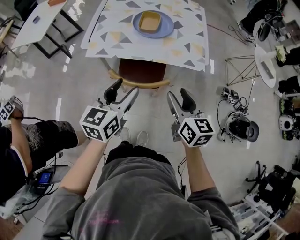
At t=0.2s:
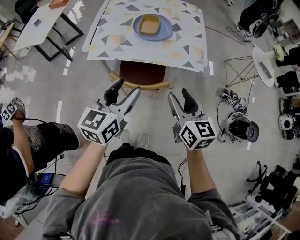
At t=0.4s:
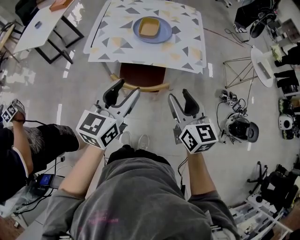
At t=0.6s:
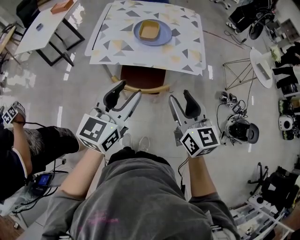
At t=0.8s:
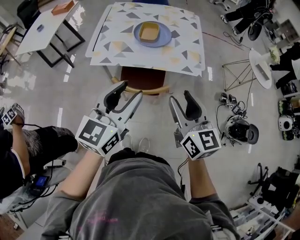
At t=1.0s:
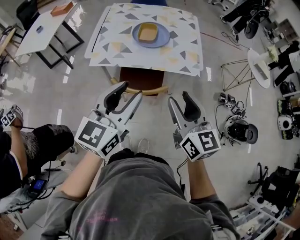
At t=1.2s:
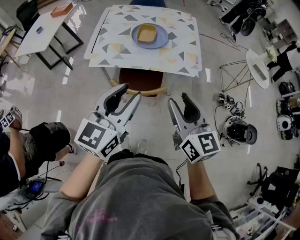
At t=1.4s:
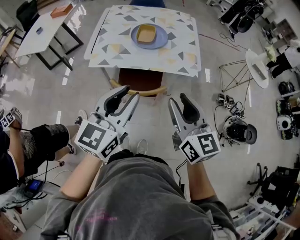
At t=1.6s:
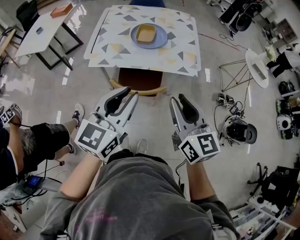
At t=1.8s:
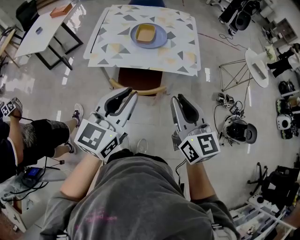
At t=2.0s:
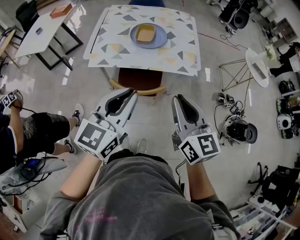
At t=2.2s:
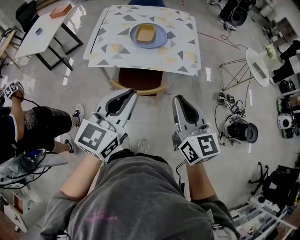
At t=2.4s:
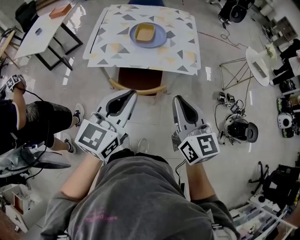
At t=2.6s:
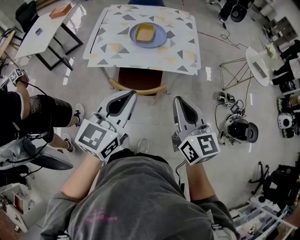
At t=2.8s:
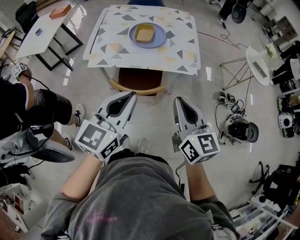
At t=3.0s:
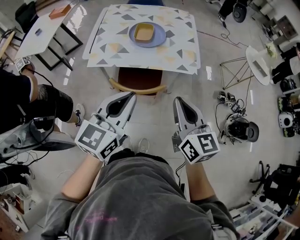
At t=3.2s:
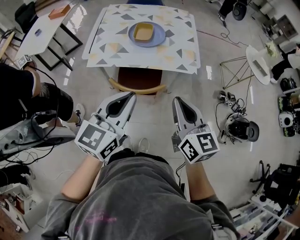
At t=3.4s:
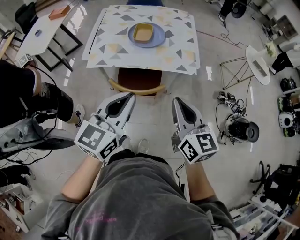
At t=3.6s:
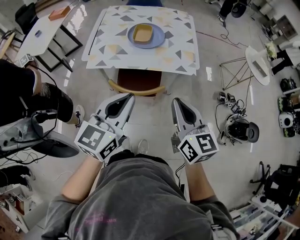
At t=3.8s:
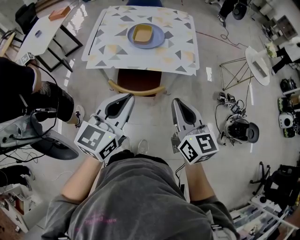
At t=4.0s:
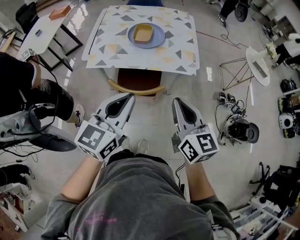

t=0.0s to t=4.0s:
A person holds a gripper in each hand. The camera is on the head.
t=0.0s to t=1.4s: Both grippers move upward and backward, roughly 15 cm. The left gripper closes up.
t=1.4s to t=2.6s: The right gripper closes; the left gripper closes up.
t=2.6s to t=4.0s: The grippers move only a little.

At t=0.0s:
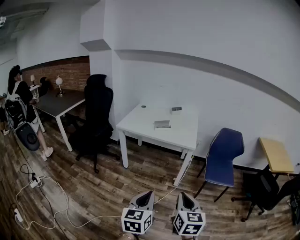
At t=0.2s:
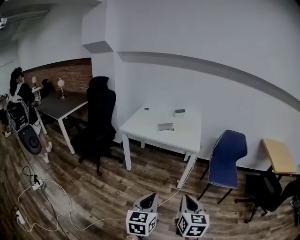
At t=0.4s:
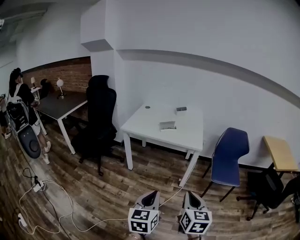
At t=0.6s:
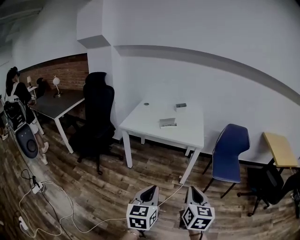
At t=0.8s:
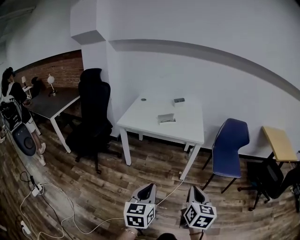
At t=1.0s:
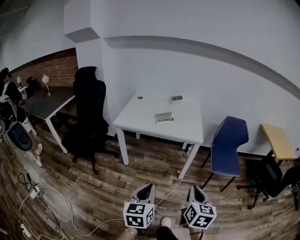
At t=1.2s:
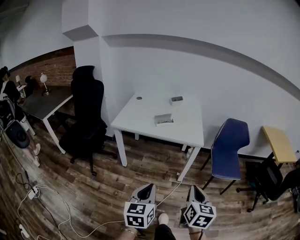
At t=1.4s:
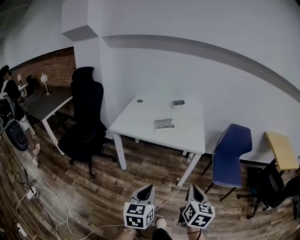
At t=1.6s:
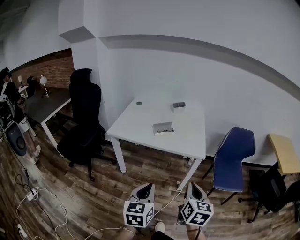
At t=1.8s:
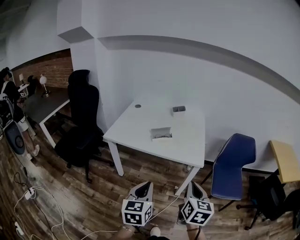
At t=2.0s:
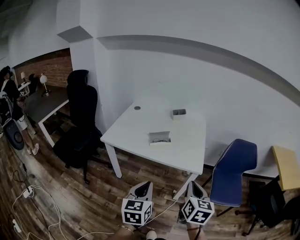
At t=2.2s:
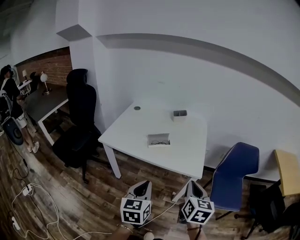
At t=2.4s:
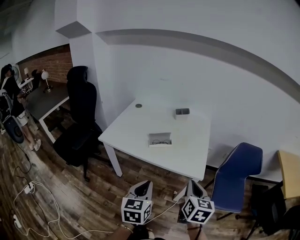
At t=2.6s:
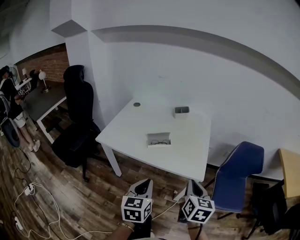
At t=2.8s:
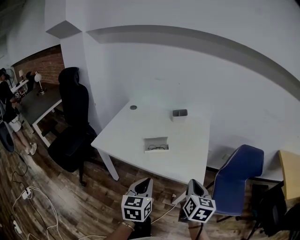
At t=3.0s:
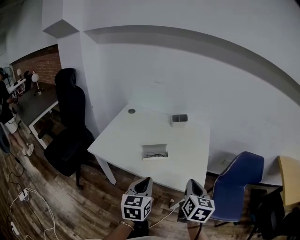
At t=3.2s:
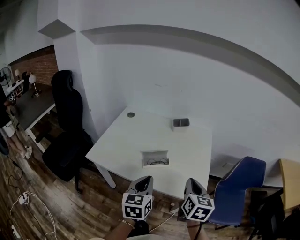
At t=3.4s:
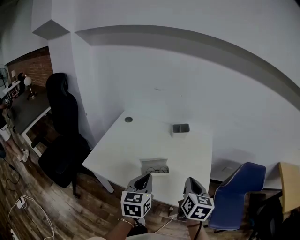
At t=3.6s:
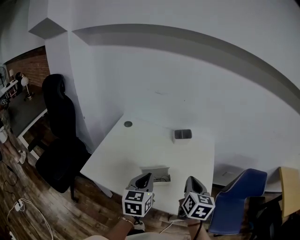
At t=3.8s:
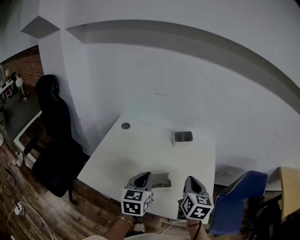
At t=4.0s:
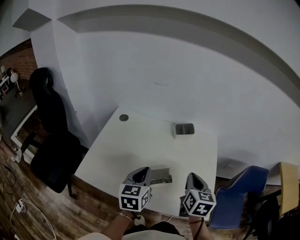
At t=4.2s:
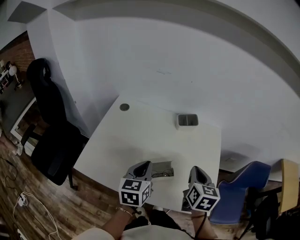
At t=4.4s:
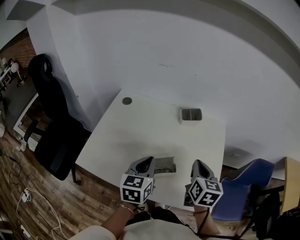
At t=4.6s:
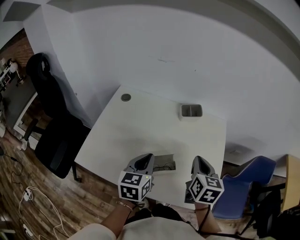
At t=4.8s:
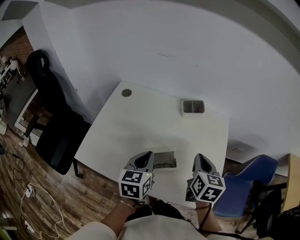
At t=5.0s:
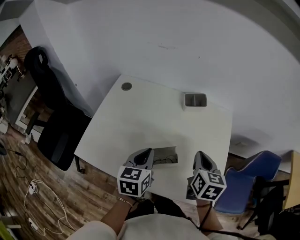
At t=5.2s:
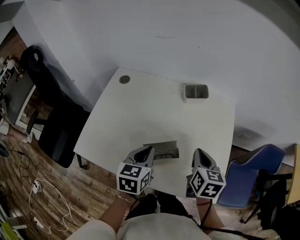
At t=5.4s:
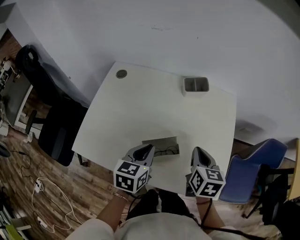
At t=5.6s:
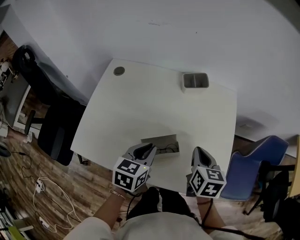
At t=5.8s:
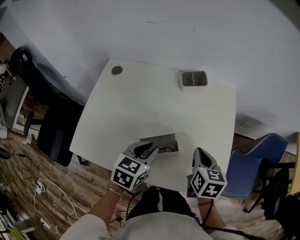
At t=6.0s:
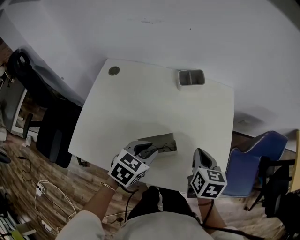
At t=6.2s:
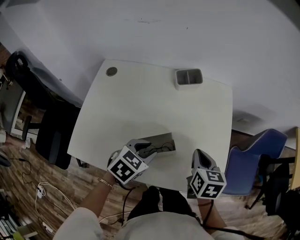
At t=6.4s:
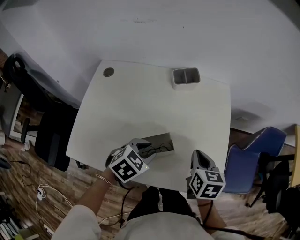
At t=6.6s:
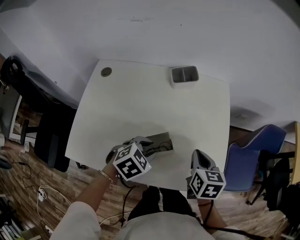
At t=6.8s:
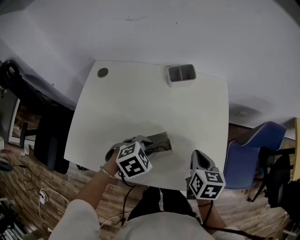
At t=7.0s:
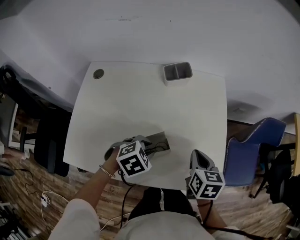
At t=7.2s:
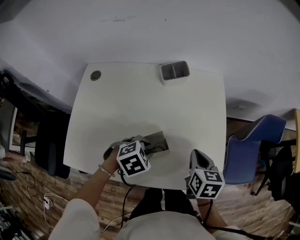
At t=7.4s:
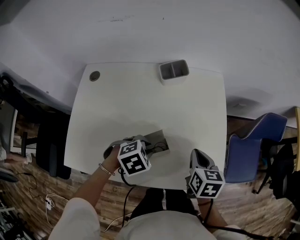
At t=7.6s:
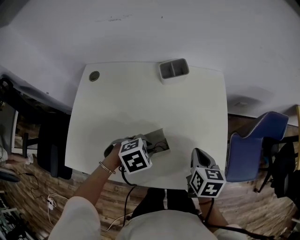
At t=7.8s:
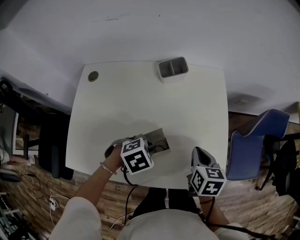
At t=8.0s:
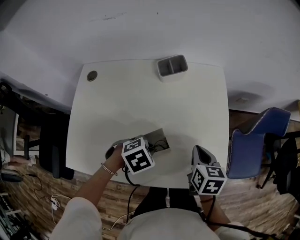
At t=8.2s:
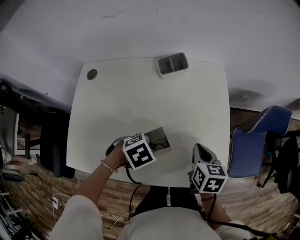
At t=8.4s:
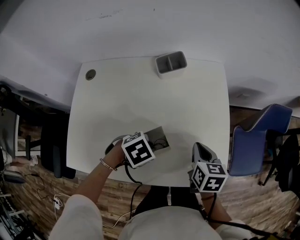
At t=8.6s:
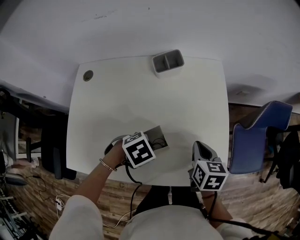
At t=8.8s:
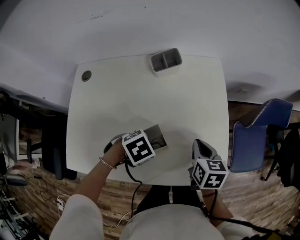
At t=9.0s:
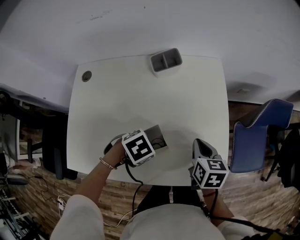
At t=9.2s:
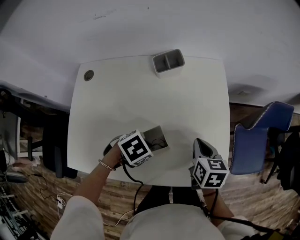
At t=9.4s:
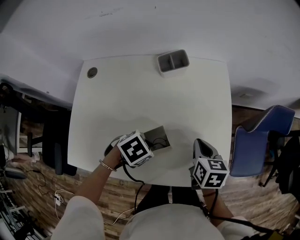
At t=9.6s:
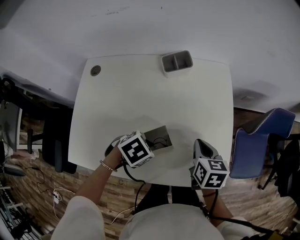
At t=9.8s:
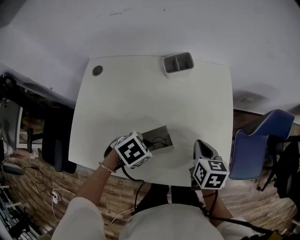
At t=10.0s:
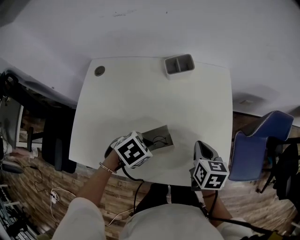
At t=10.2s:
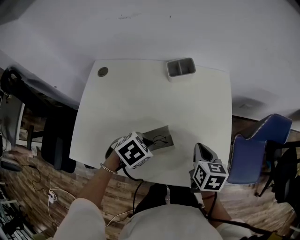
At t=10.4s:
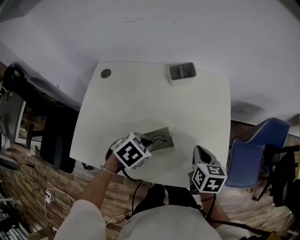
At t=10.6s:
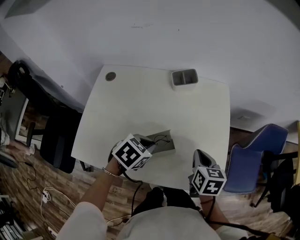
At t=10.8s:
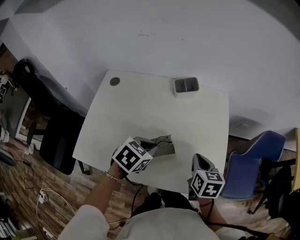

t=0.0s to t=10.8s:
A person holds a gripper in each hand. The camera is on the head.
t=0.0s to t=1.6s: Both grippers travel together forward, about 20 cm.
t=1.6s to t=3.0s: The grippers both shift forward by roughly 30 cm.
t=3.0s to t=4.6s: The two grippers go roughly 20 cm forward.
t=4.6s to t=6.2s: Both grippers move downward, some 10 cm. The left gripper swivels about 50 degrees, and opens.
t=6.2s to t=7.8s: The left gripper travels downward by roughly 5 cm, and rotates approximately 40 degrees.
t=7.8s to t=9.2s: The grippers make only small movements.
t=9.2s to t=10.8s: The left gripper heads upward, covering some 10 cm, and rotates some 40 degrees.

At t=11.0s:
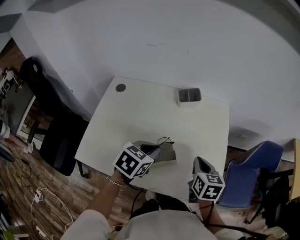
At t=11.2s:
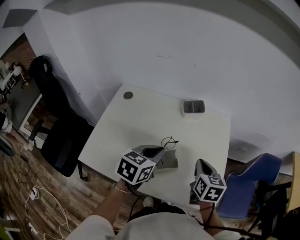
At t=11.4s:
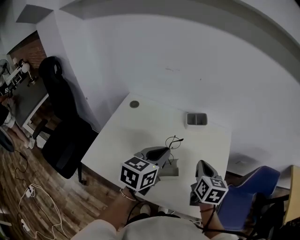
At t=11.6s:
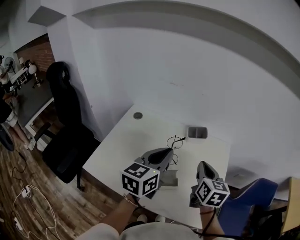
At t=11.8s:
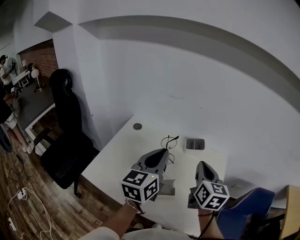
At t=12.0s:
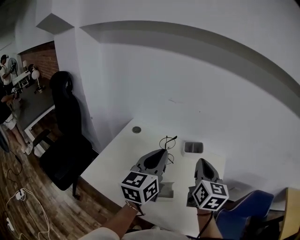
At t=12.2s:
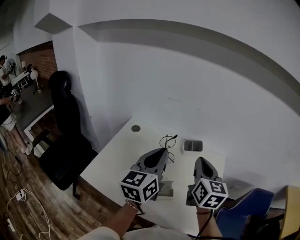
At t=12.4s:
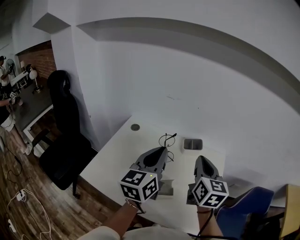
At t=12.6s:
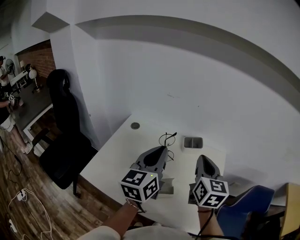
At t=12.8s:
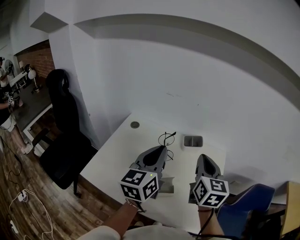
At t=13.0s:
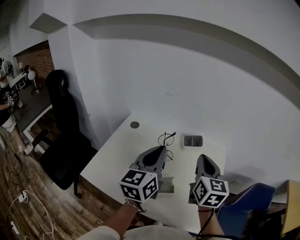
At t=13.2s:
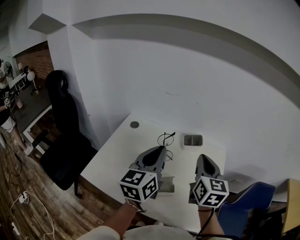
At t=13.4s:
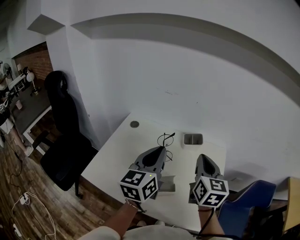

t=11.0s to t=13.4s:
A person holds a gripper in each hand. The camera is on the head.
t=11.0s to t=12.2s: The right gripper goes roughly 20 cm upward and forward, and rotates approximately 30 degrees. The left gripper heads upward, covering some 20 cm, and angles its fingers upward, by roughly 50 degrees.
t=12.2s to t=13.4s: The grippers make only small movements.

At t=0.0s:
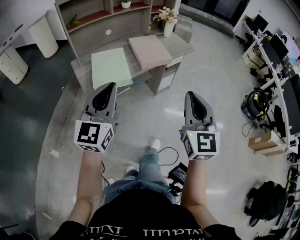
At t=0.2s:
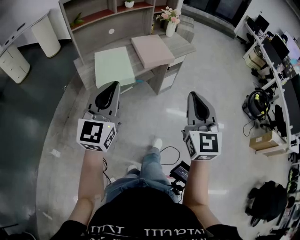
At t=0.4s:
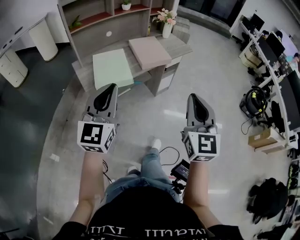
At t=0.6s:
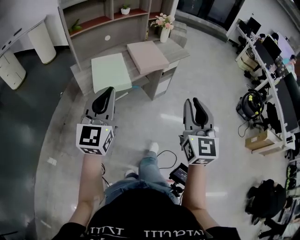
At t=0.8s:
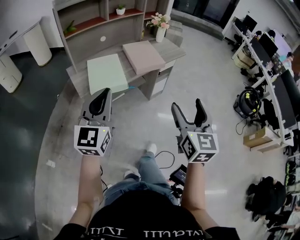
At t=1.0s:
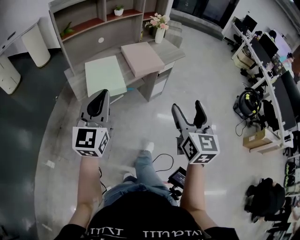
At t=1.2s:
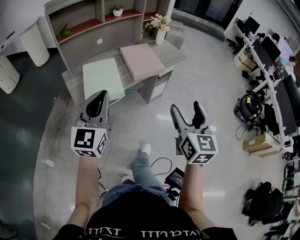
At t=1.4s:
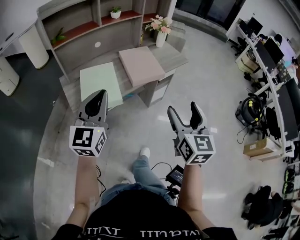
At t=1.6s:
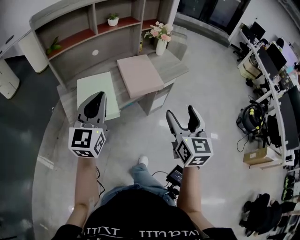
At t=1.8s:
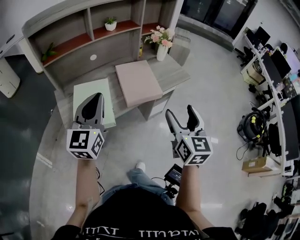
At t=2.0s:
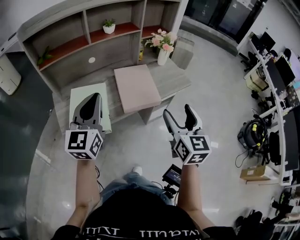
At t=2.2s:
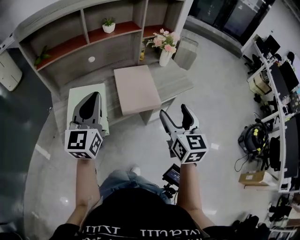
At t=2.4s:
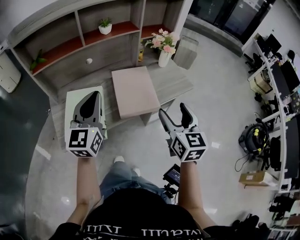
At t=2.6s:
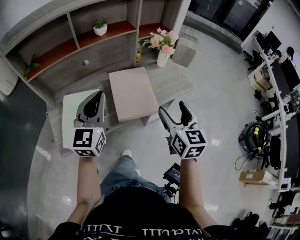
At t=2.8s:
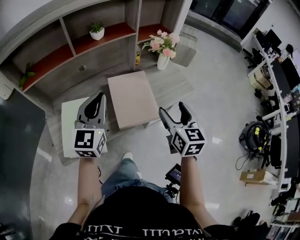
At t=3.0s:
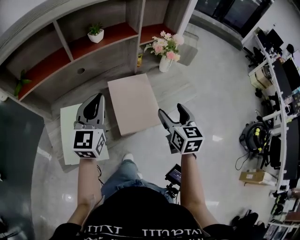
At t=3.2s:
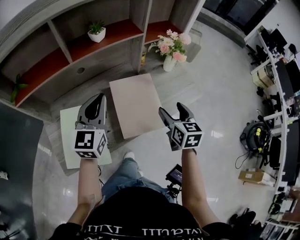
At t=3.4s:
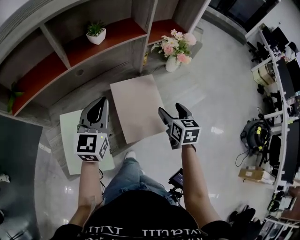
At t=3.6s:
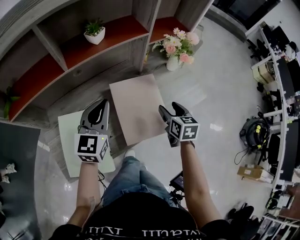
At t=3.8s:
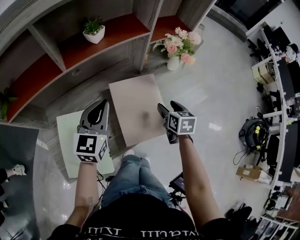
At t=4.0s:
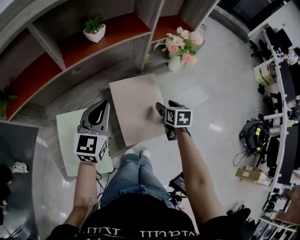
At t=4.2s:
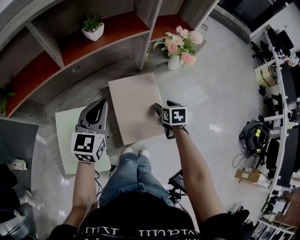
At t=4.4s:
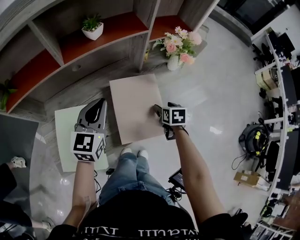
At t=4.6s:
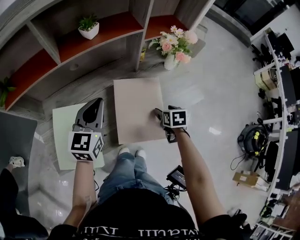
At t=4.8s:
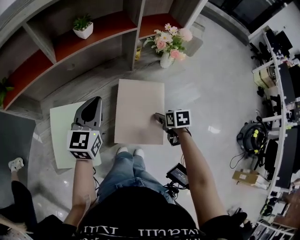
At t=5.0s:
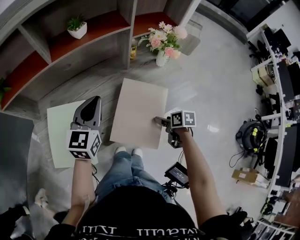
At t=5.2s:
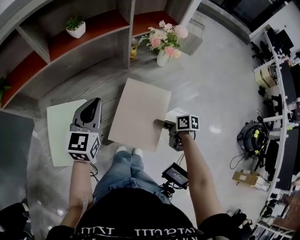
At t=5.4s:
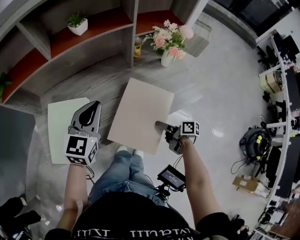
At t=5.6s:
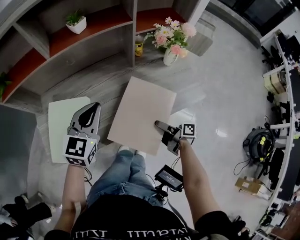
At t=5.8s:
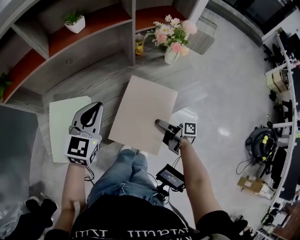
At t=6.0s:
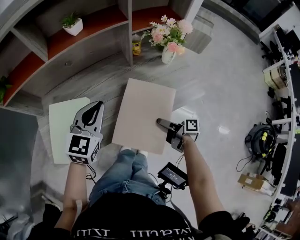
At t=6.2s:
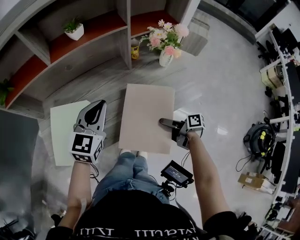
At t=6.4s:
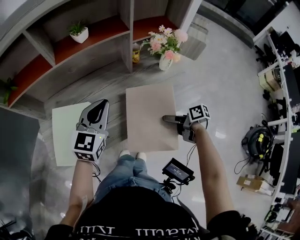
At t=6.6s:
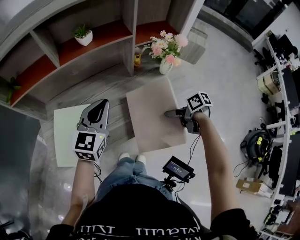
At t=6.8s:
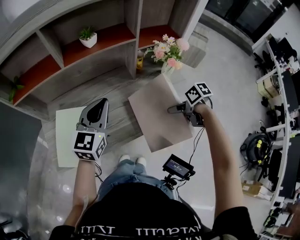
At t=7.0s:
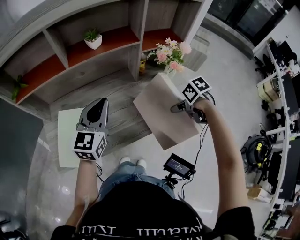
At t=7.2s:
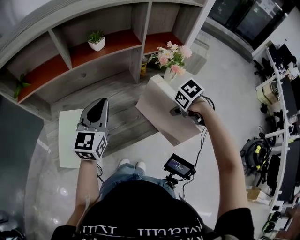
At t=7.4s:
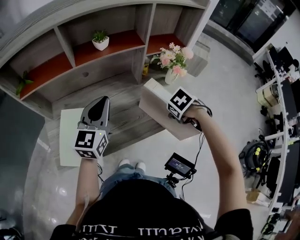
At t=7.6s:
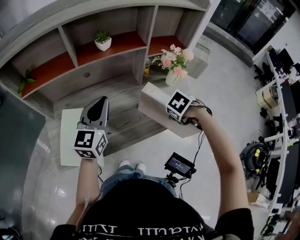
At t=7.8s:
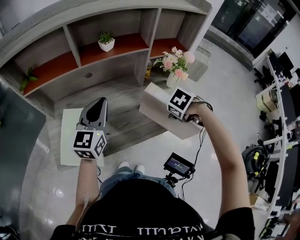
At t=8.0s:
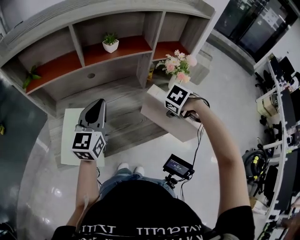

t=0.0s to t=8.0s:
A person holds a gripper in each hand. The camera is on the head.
t=0.0s to t=1.6s: Both grippers move forward, roughly 20 cm. The right gripper opens up.
t=1.6s to t=3.2s: Both grippers move forward, some 35 cm. The right gripper changes its angle by about 20 degrees.
t=3.2s to t=4.8s: The right gripper heads downward, covering about 15 cm, and tips its fingers downward by approximately 30 degrees. The left gripper is displaced downward by approximately 5 cm.
t=4.8s to t=6.4s: The left gripper ends up about 5 cm from where it was, while the right gripper swivels approximately 50 degrees.
t=6.4s to t=8.0s: The right gripper travels upward by about 10 cm, and angles its fingers downward, by approximately 50 degrees, while the left gripper ends up roughly 10 cm from where it was.
